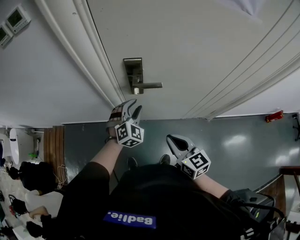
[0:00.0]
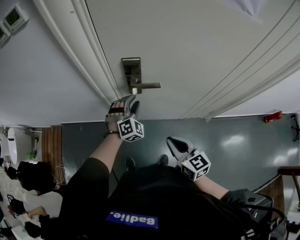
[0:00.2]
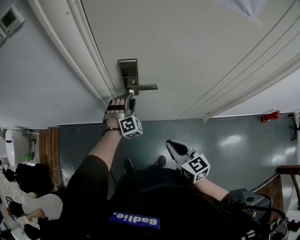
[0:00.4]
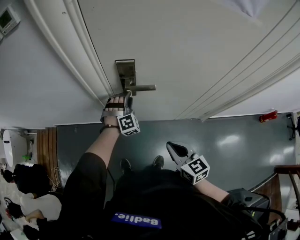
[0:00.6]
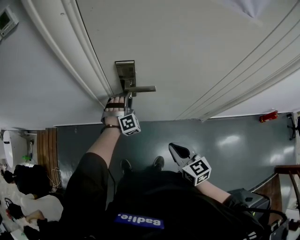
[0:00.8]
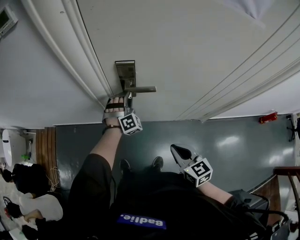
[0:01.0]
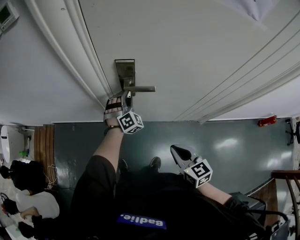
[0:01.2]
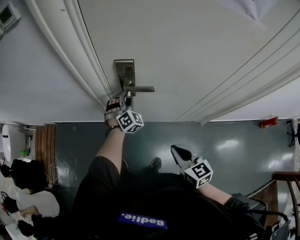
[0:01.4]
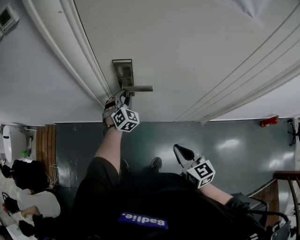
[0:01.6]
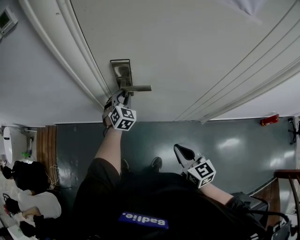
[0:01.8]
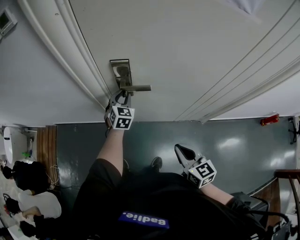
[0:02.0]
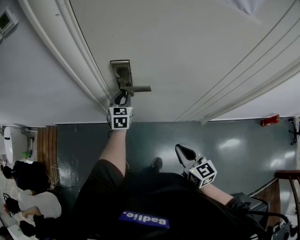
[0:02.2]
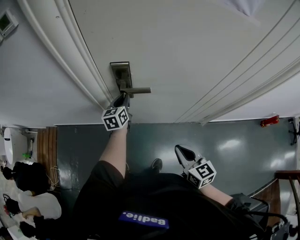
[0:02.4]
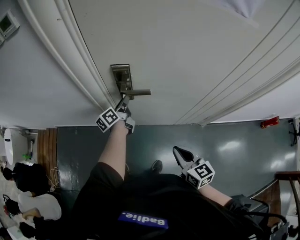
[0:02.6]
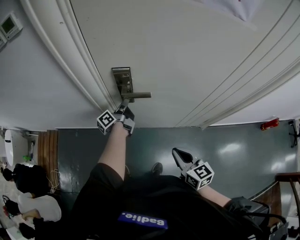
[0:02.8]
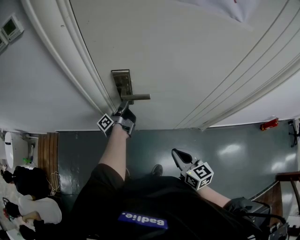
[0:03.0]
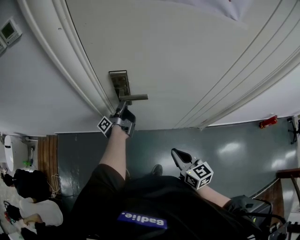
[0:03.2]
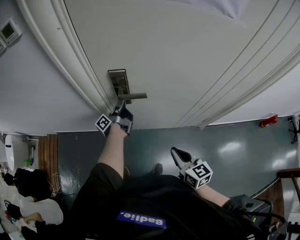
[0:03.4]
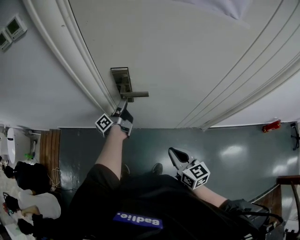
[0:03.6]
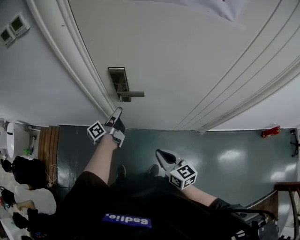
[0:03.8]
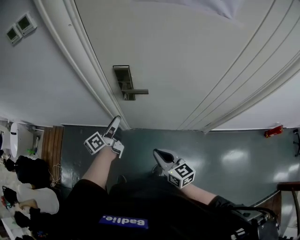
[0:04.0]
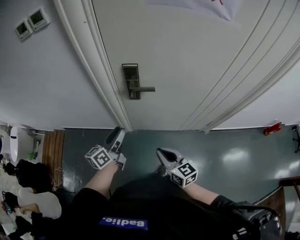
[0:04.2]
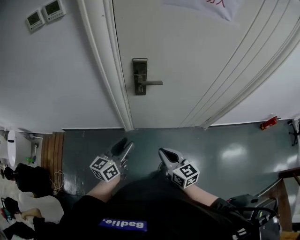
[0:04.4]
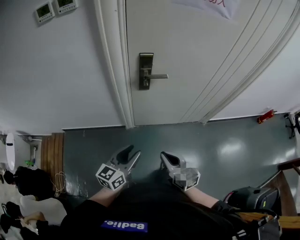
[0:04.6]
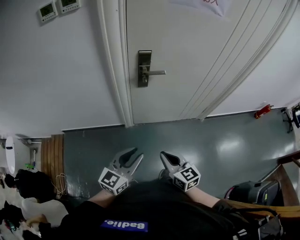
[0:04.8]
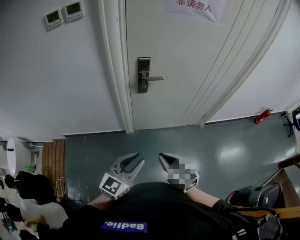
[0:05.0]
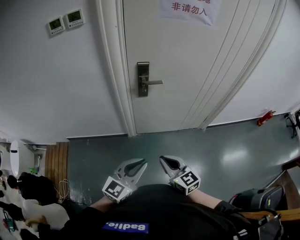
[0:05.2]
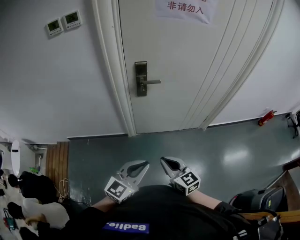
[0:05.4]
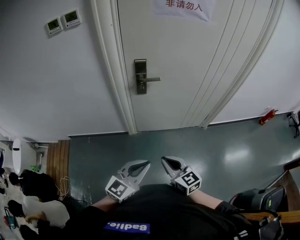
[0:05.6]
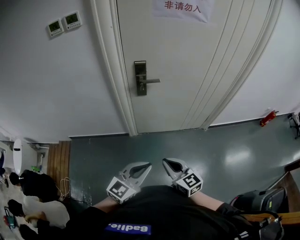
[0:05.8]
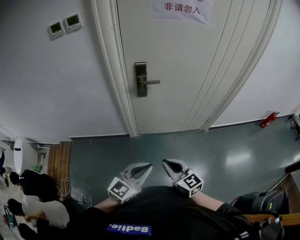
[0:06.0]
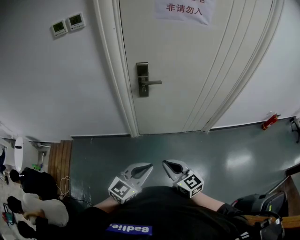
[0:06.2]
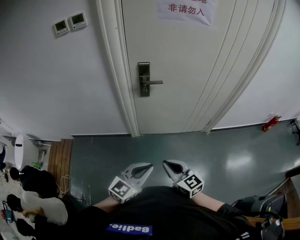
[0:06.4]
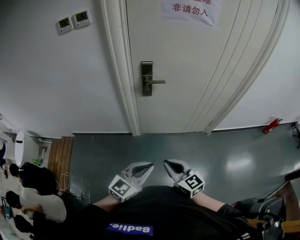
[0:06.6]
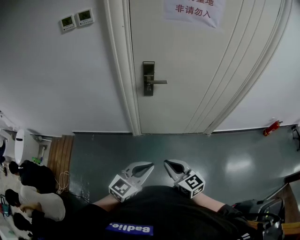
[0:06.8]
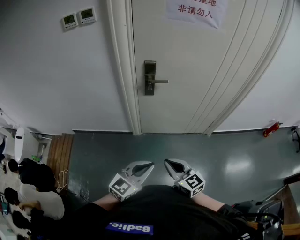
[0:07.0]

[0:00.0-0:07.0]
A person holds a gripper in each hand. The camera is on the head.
0:00.0 to 0:01.4: The right gripper goes approximately 5 cm to the right. The left gripper goes approximately 10 cm forward.
0:01.4 to 0:02.8: The left gripper rotates around the line of its fingers by approximately 130 degrees, counterclockwise from behind, and closes its fingers.
0:02.8 to 0:04.2: The right gripper goes about 10 cm to the left. The left gripper shifts approximately 25 cm backward and upward, changes its angle by approximately 40 degrees, and opens its fingers.
0:04.2 to 0:05.6: The right gripper shifts roughly 20 cm backward, while the left gripper shifts approximately 30 cm backward, rotates around the line of its fingers by roughly 40 degrees, clockwise from behind, and closes.
0:05.6 to 0:07.0: The grippers move only a little.

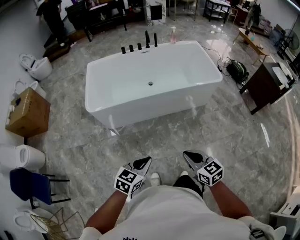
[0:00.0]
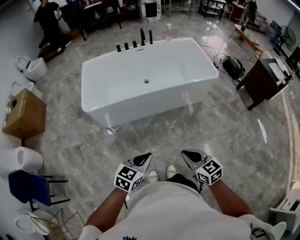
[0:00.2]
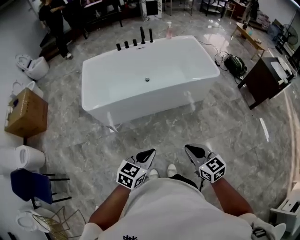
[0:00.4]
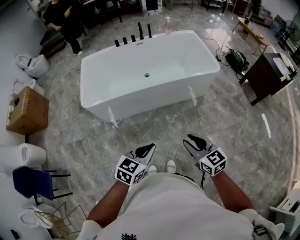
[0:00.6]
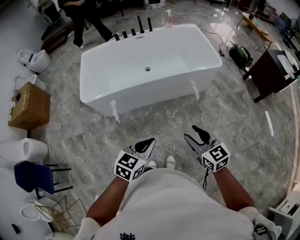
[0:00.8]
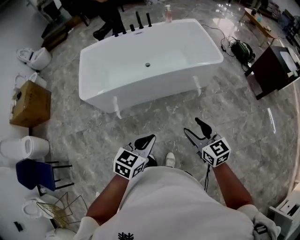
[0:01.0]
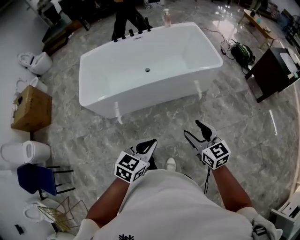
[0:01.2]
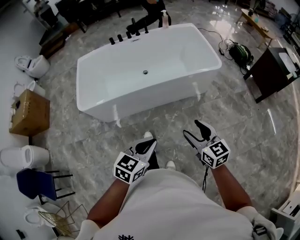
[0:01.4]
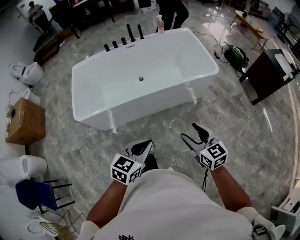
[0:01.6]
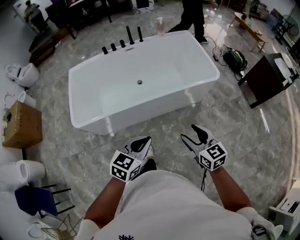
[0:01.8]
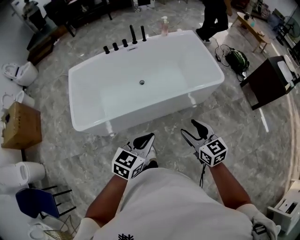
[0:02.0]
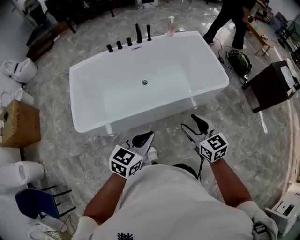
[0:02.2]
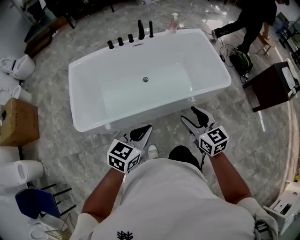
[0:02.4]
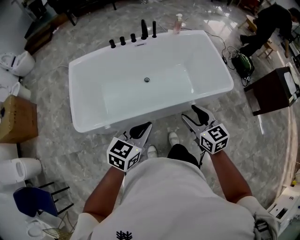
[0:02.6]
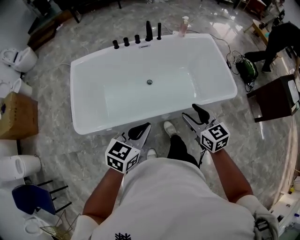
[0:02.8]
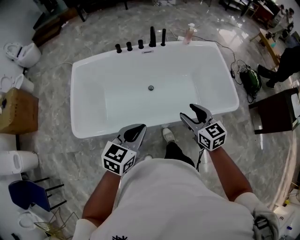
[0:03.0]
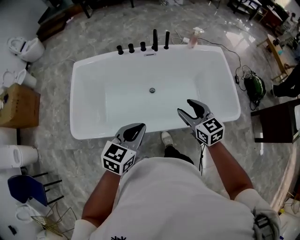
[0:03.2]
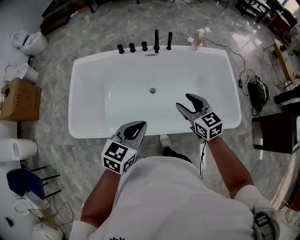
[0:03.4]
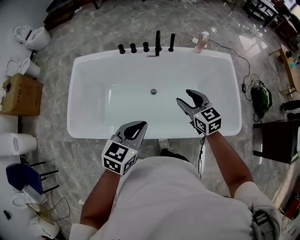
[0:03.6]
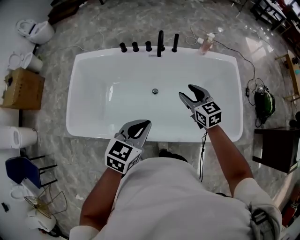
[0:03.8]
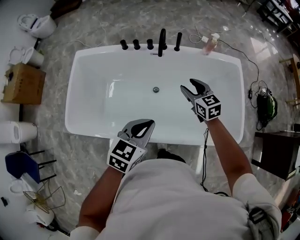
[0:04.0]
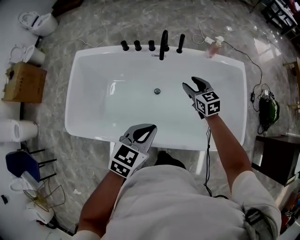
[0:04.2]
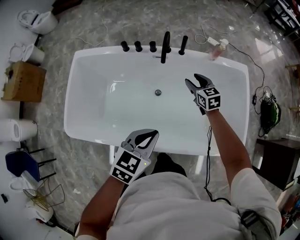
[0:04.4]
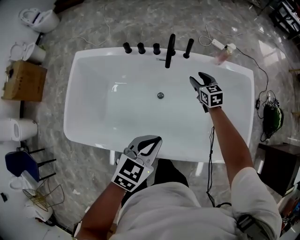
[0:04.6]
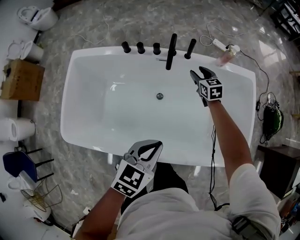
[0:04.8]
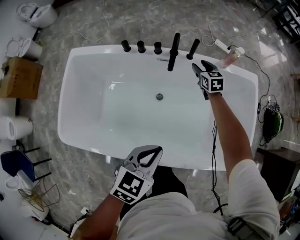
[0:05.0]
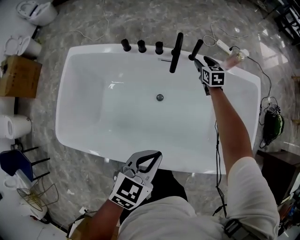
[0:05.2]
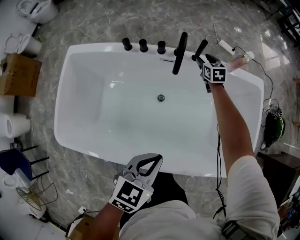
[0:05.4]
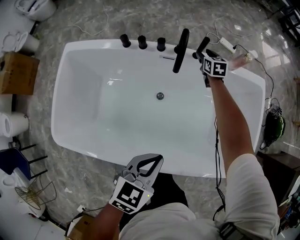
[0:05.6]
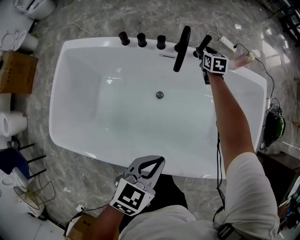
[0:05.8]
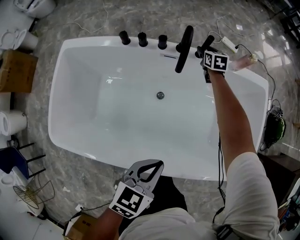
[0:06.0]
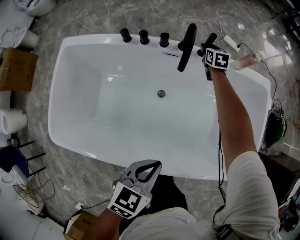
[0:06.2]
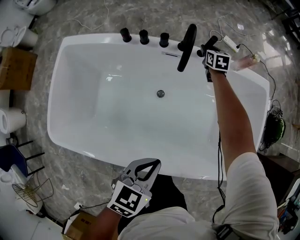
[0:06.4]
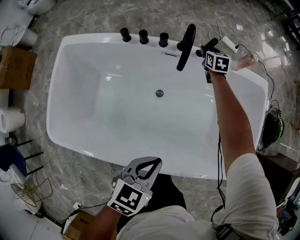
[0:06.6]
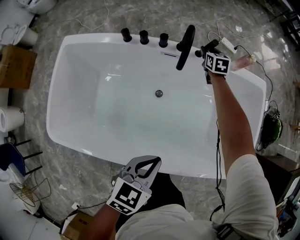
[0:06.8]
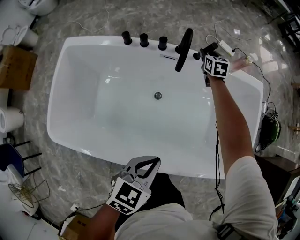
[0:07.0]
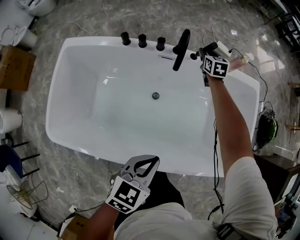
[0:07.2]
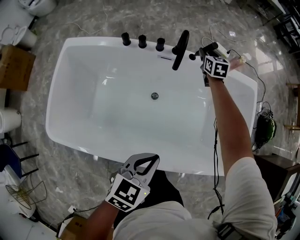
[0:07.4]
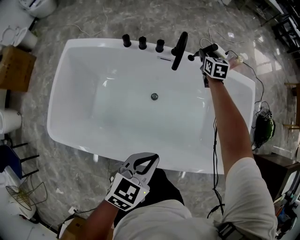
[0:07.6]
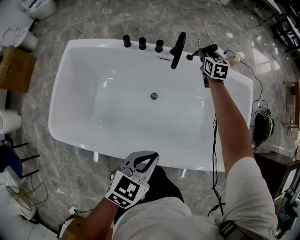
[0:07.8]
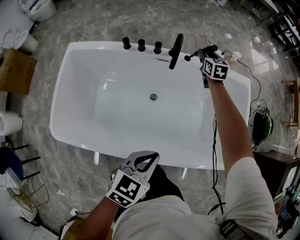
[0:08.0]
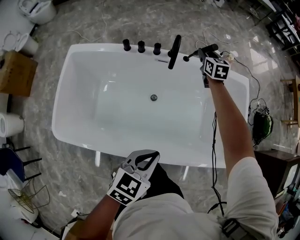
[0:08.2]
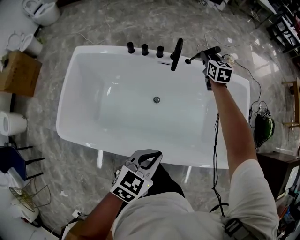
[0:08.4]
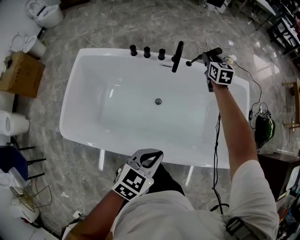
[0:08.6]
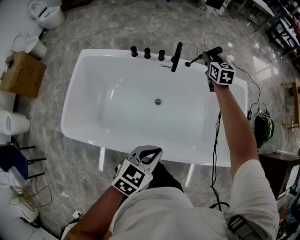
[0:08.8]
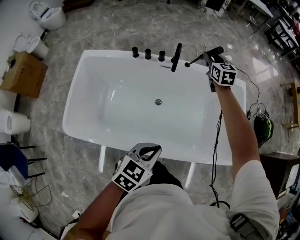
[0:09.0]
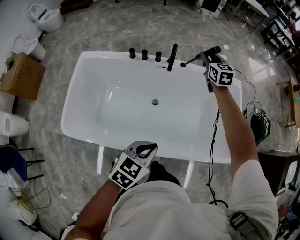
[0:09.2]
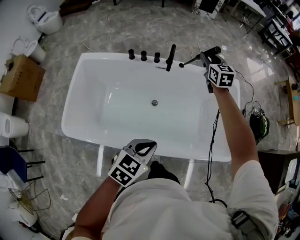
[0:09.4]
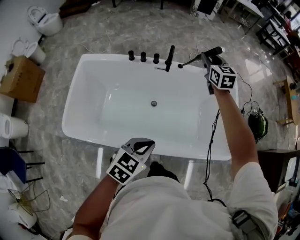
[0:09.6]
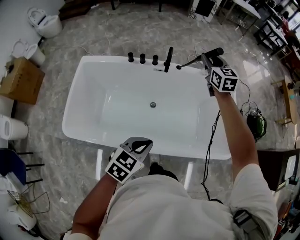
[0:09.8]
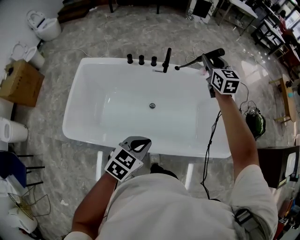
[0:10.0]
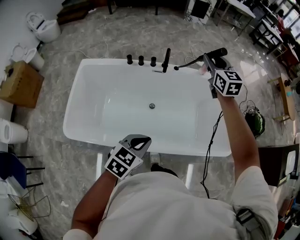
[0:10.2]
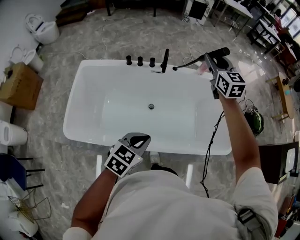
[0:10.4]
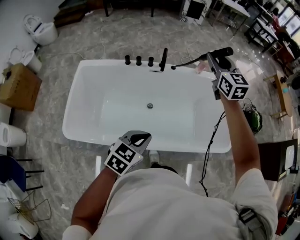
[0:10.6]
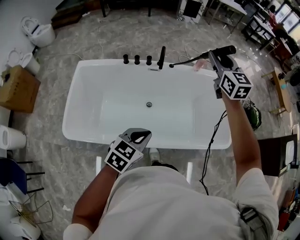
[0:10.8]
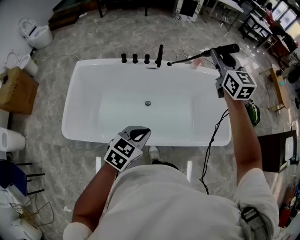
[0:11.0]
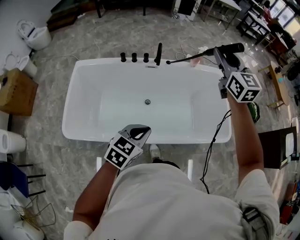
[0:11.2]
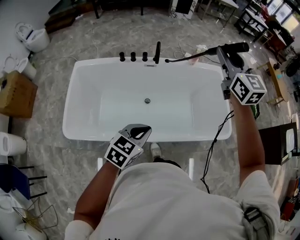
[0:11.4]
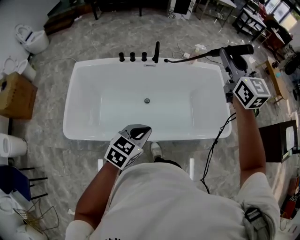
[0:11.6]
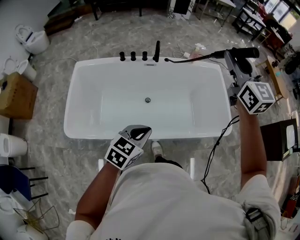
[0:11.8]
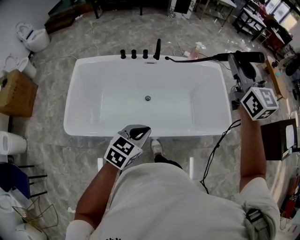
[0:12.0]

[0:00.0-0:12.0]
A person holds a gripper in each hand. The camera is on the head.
0:00.0 to 0:01.6: The two grippers go about 20 cm forward and to the right. The right gripper opens.
0:01.6 to 0:03.0: Both grippers move forward and to the left, roughly 40 cm.
0:03.0 to 0:04.4: The left gripper heads forward and to the right, covering some 30 cm. Meanwhile the right gripper moves forward, some 50 cm.
0:04.4 to 0:06.0: The right gripper is displaced forward and downward by roughly 30 cm; the left gripper goes approximately 10 cm downward.
0:06.0 to 0:07.6: The right gripper shifts roughly 10 cm upward, while the left gripper moves approximately 5 cm.
0:07.6 to 0:09.0: The left gripper travels upward and backward by about 10 cm, while the right gripper moves upward and backward, some 25 cm.
0:09.0 to 0:10.4: The right gripper travels upward and backward by about 25 cm. The left gripper is displaced backward by some 5 cm.
0:10.4 to 0:12.0: The right gripper heads backward and upward, covering about 25 cm. Meanwhile the left gripper travels backward by roughly 10 cm.

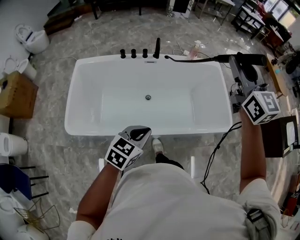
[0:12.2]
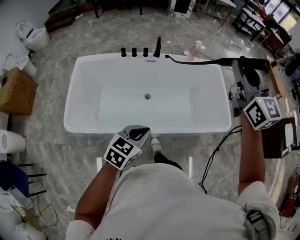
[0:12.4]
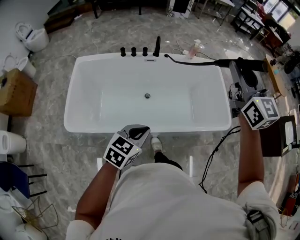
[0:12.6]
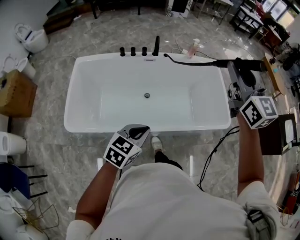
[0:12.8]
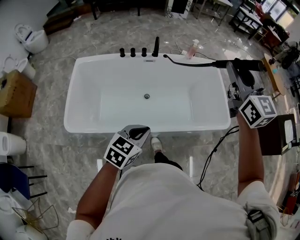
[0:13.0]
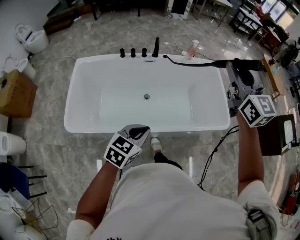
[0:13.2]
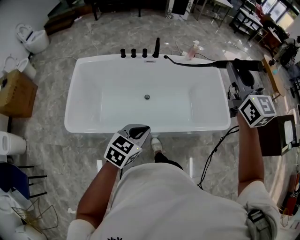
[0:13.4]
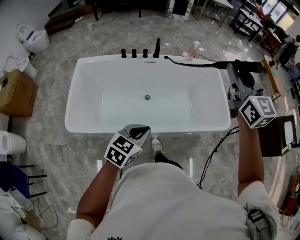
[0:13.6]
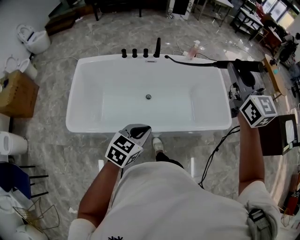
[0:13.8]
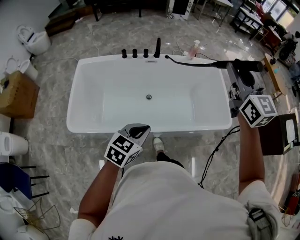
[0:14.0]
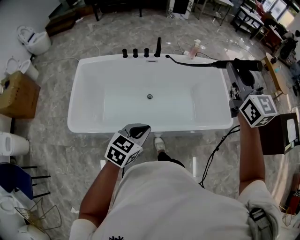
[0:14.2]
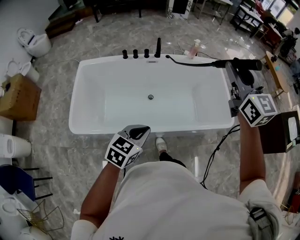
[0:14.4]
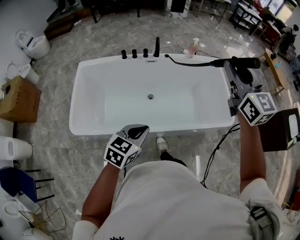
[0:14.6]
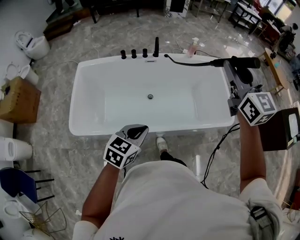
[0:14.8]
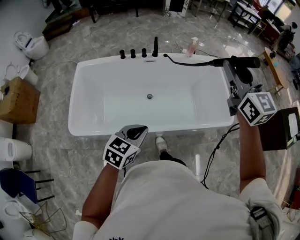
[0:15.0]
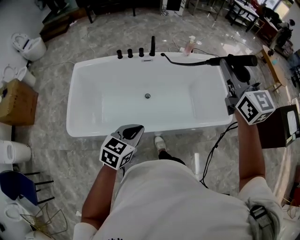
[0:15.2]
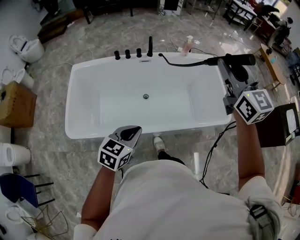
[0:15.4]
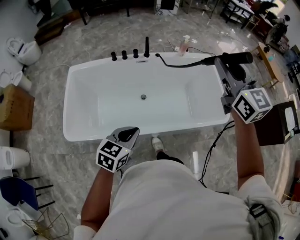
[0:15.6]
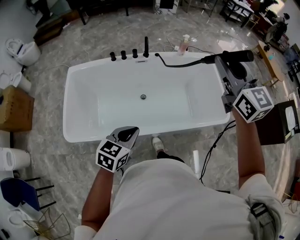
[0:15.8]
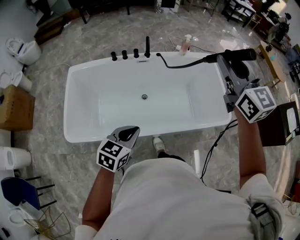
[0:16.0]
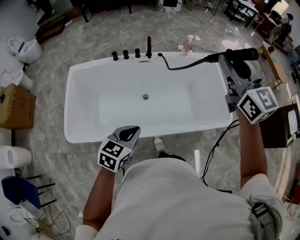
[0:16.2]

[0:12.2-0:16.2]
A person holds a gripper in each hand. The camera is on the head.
0:12.2 to 0:14.8: The grippers stay close to where they were, moving slightly.
0:14.8 to 0:16.2: The left gripper shifts by approximately 5 cm.
